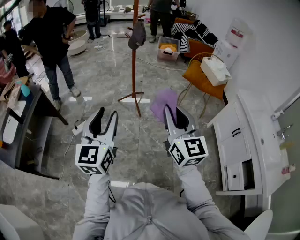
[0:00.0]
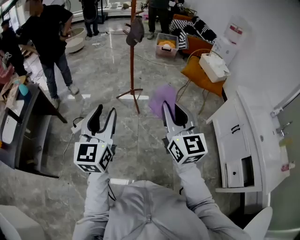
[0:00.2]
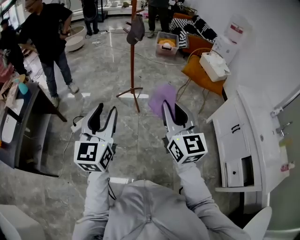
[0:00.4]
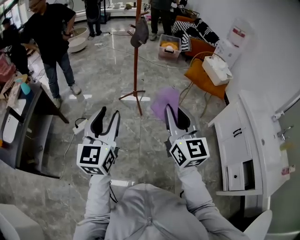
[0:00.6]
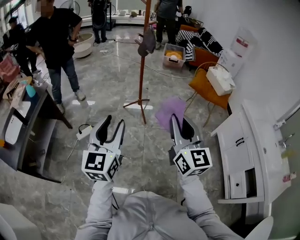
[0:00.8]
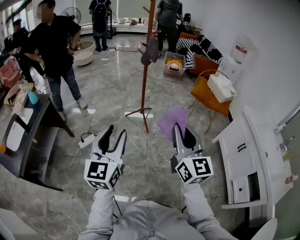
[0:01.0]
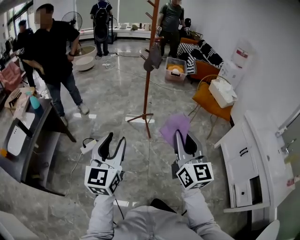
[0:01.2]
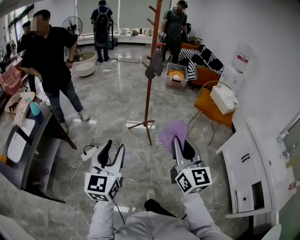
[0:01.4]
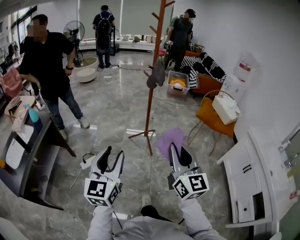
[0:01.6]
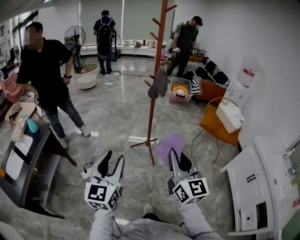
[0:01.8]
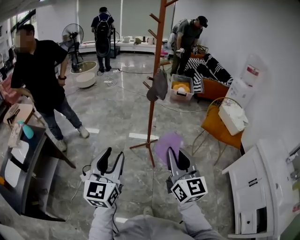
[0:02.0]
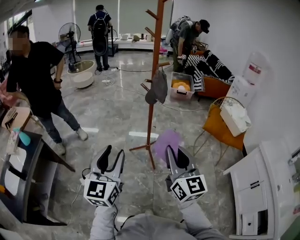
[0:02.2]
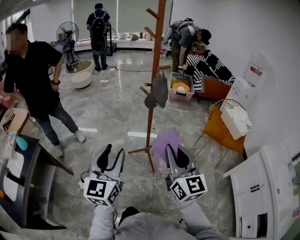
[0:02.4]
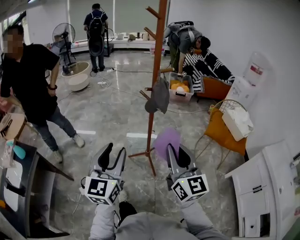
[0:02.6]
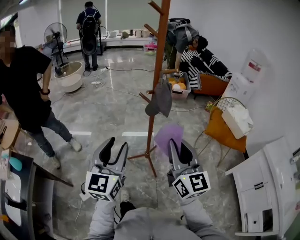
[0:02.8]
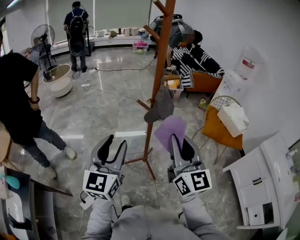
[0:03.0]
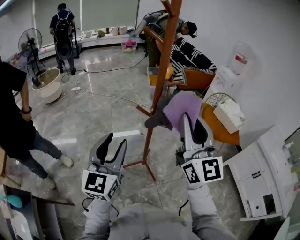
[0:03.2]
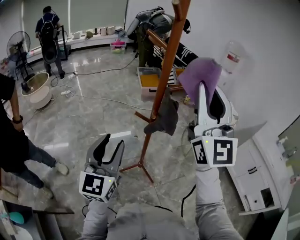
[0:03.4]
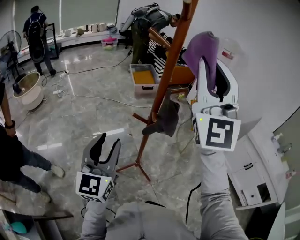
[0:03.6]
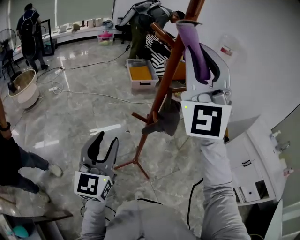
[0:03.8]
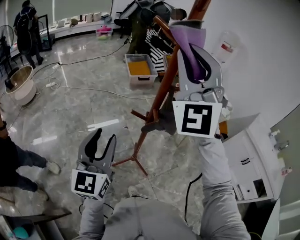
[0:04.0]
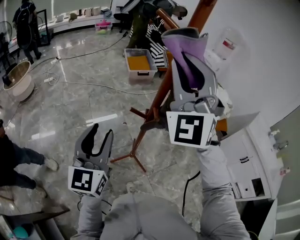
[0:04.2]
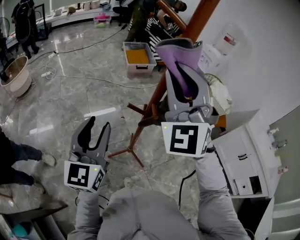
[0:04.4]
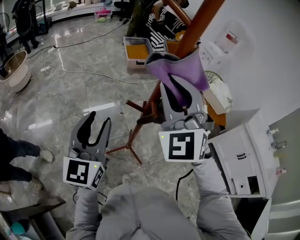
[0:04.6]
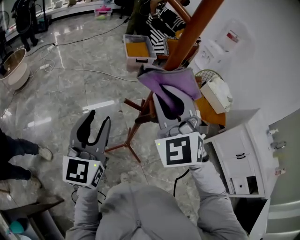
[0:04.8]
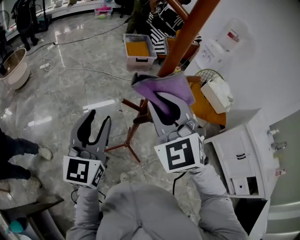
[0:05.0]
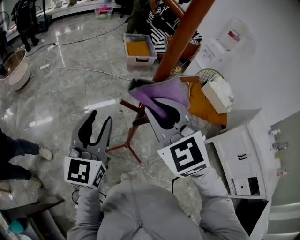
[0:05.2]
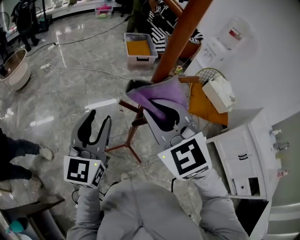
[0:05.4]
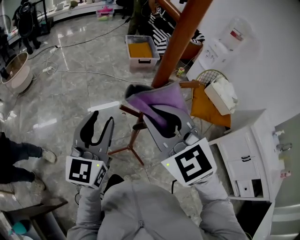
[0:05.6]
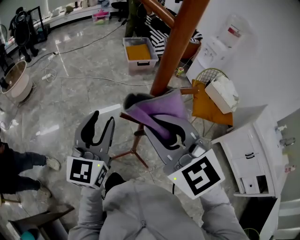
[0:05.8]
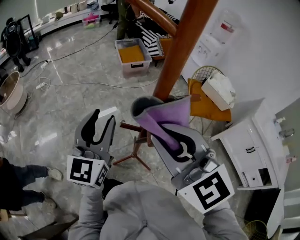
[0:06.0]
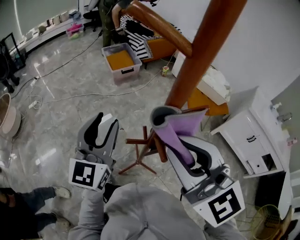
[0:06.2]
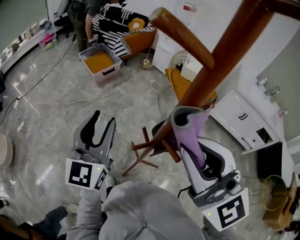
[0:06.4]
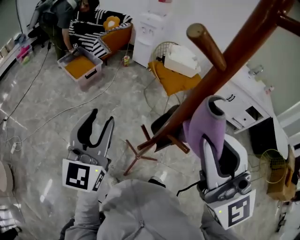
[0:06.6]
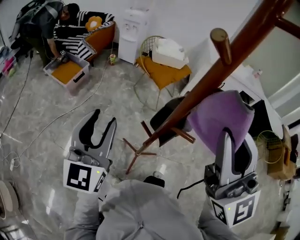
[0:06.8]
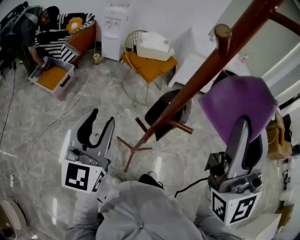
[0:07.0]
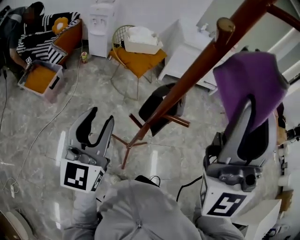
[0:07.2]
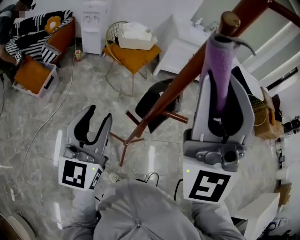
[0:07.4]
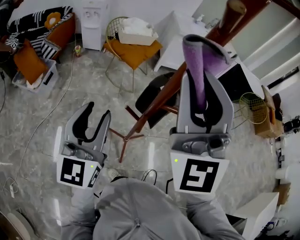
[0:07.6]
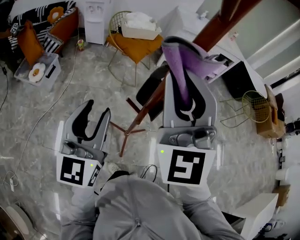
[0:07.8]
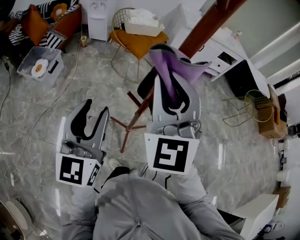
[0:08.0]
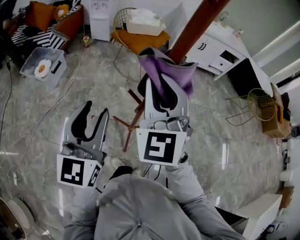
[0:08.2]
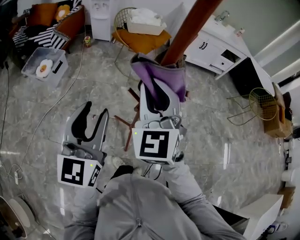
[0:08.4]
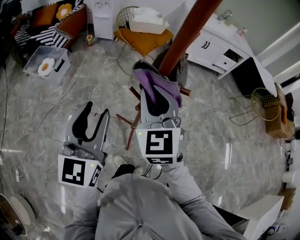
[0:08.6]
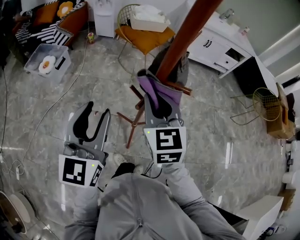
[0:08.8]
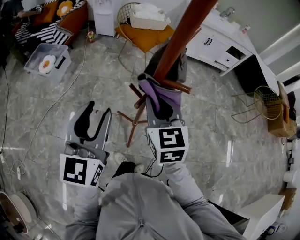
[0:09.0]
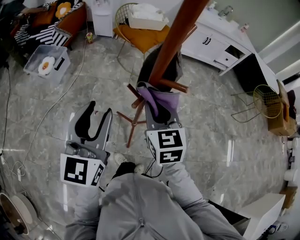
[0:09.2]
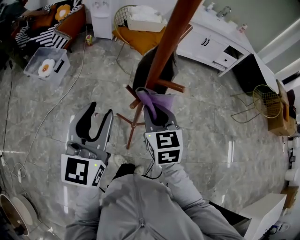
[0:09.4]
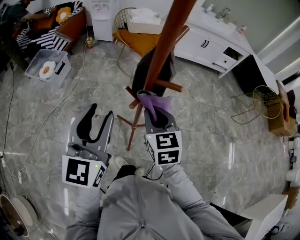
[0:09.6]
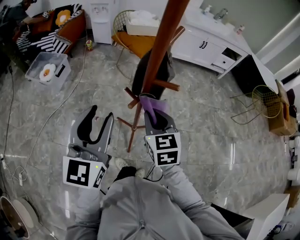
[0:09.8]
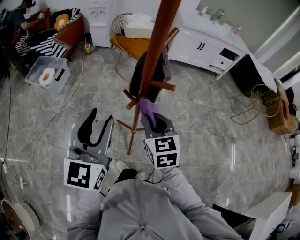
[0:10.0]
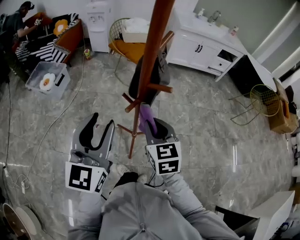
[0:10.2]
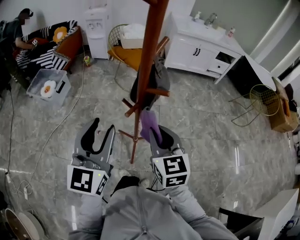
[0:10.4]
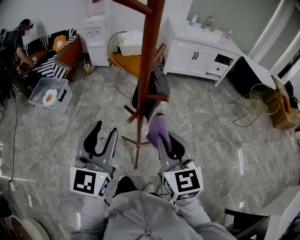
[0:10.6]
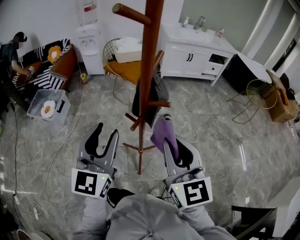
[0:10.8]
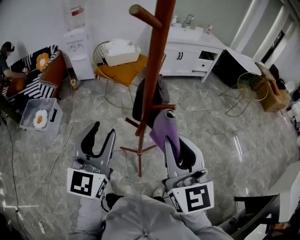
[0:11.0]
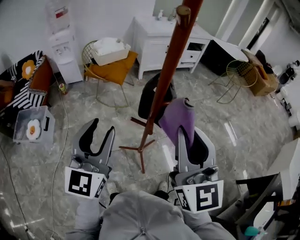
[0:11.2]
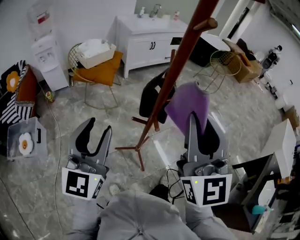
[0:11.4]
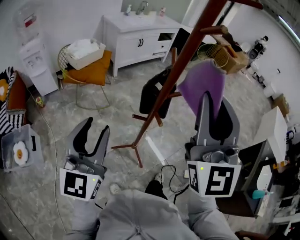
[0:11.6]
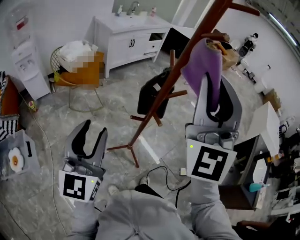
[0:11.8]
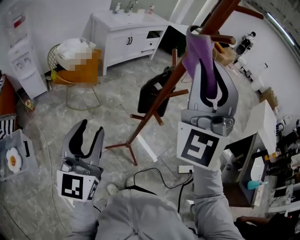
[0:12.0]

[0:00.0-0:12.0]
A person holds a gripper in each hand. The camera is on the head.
0:00.0 to 0:01.6: The grippers both shift to the left and forward by approximately 15 cm.
0:01.6 to 0:03.0: The two grippers travel together, forward, roughly 40 cm.
0:03.0 to 0:04.4: The right gripper heads forward, to the left and upward, covering roughly 30 cm, and rolls counterclockwise, seen from behind, by about 60 degrees; the left gripper travels forward and to the left by roughly 20 cm.
0:04.4 to 0:06.0: The right gripper moves downward, roughly 10 cm, and changes its angle by roughly 50 degrees, while the left gripper moves forward and to the right, some 10 cm.
0:06.0 to 0:07.6: The left gripper shifts by about 10 cm, and rotates roughly 60 degrees. Meanwhile the right gripper heads upward, covering approximately 10 cm, and changes its angle by roughly 90 degrees.
0:07.6 to 0:09.0: The left gripper shifts approximately 5 cm backward; the right gripper goes roughly 25 cm downward, and angles its fingers downward, by approximately 40 degrees.
0:09.0 to 0:10.4: The left gripper shifts by about 5 cm; the right gripper is displaced backward by some 10 cm.
0:10.4 to 0:12.0: The right gripper heads upward, covering about 30 cm, and tips its fingers upward by approximately 50 degrees. Meanwhile the left gripper changes place by approximately 25 cm, and turns by some 40 degrees.

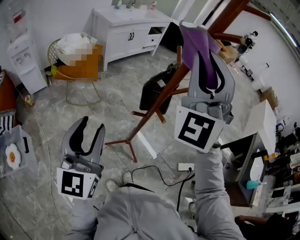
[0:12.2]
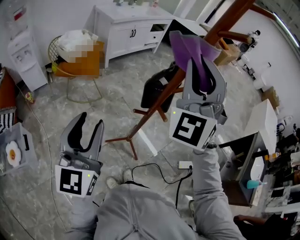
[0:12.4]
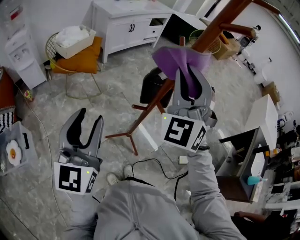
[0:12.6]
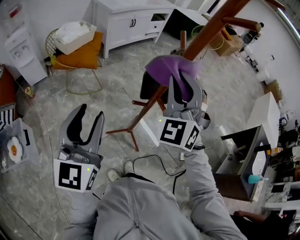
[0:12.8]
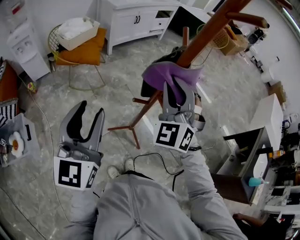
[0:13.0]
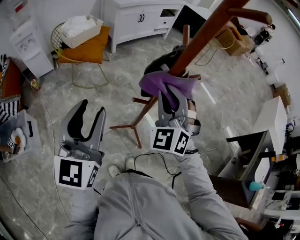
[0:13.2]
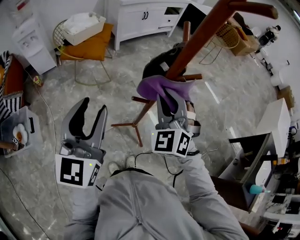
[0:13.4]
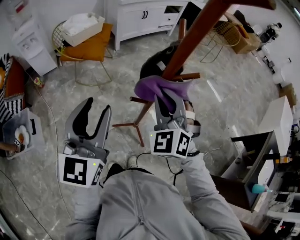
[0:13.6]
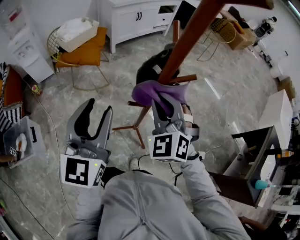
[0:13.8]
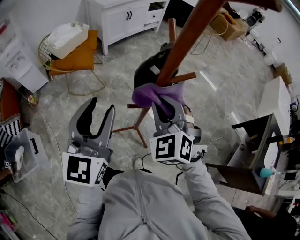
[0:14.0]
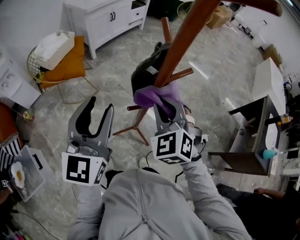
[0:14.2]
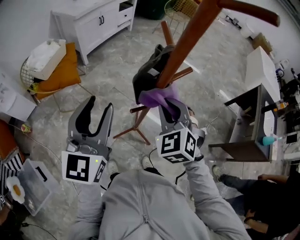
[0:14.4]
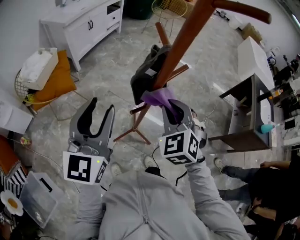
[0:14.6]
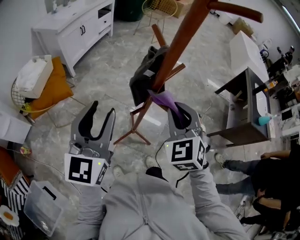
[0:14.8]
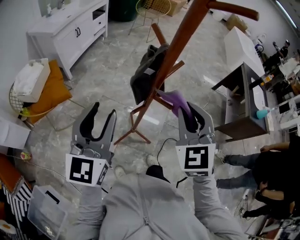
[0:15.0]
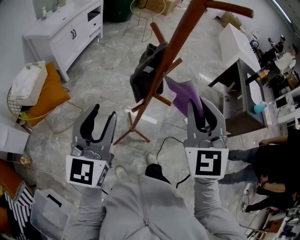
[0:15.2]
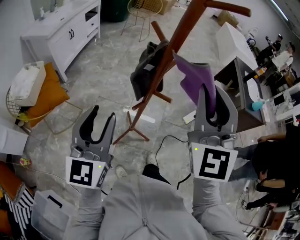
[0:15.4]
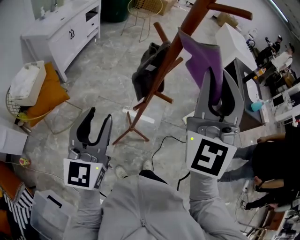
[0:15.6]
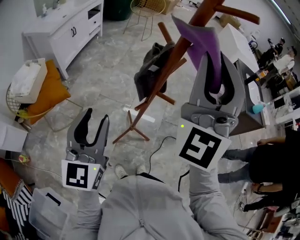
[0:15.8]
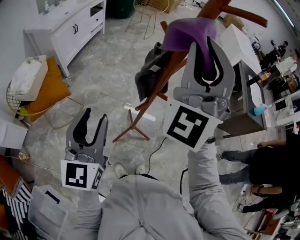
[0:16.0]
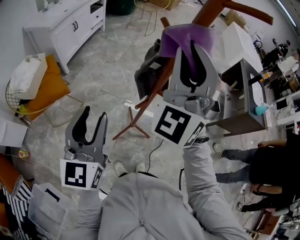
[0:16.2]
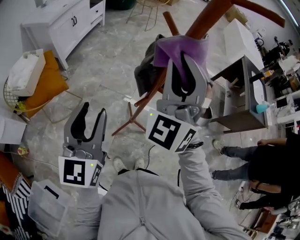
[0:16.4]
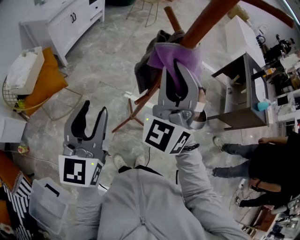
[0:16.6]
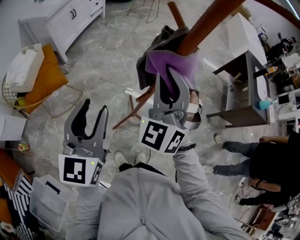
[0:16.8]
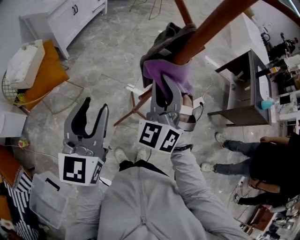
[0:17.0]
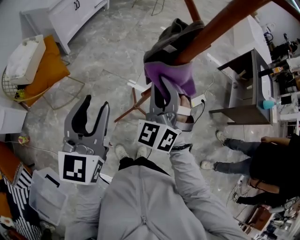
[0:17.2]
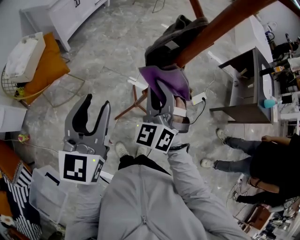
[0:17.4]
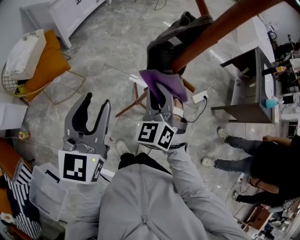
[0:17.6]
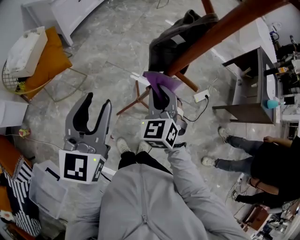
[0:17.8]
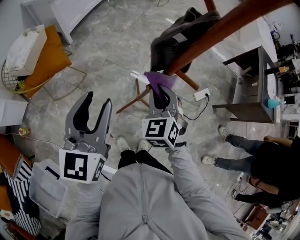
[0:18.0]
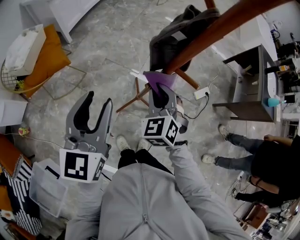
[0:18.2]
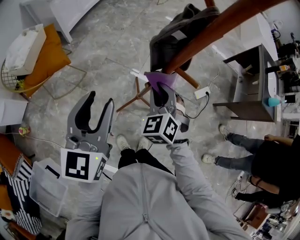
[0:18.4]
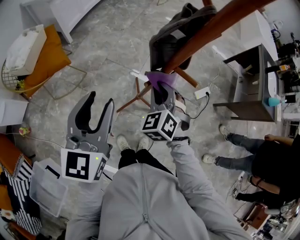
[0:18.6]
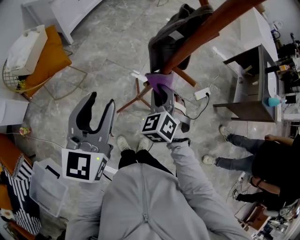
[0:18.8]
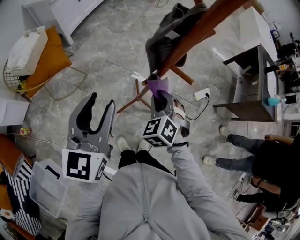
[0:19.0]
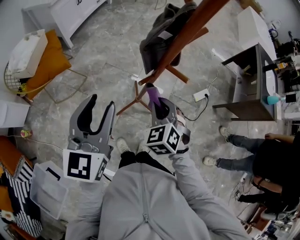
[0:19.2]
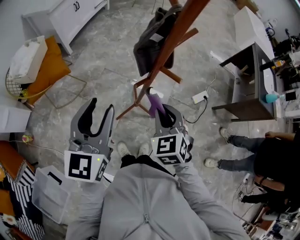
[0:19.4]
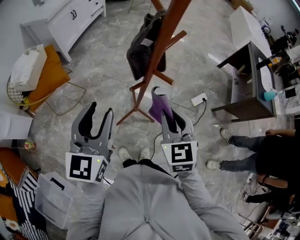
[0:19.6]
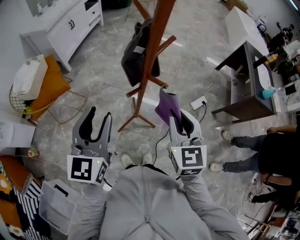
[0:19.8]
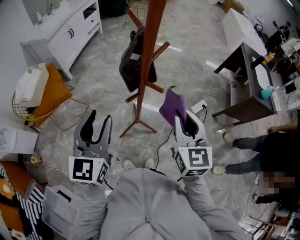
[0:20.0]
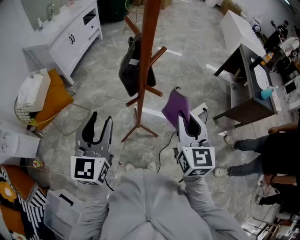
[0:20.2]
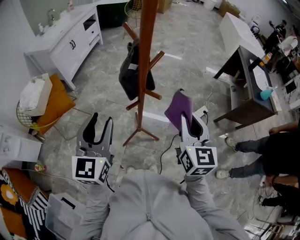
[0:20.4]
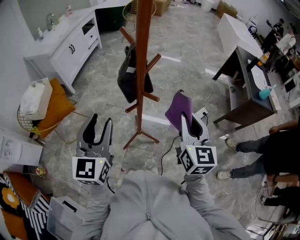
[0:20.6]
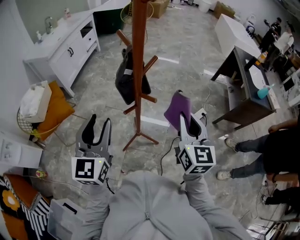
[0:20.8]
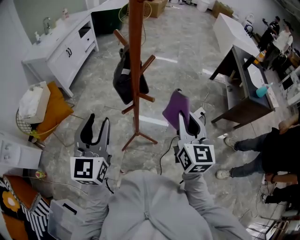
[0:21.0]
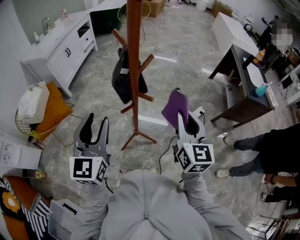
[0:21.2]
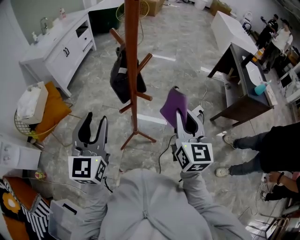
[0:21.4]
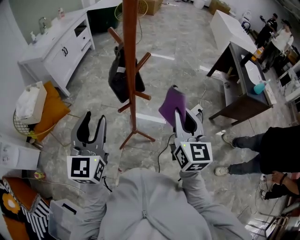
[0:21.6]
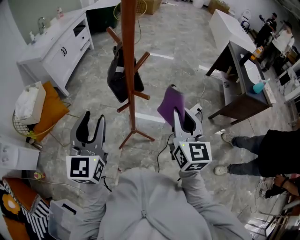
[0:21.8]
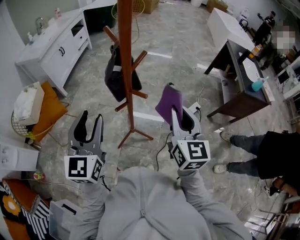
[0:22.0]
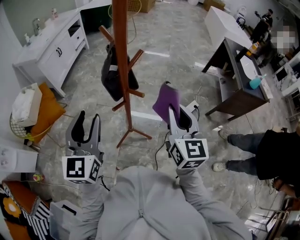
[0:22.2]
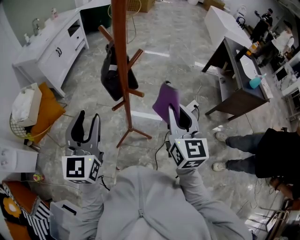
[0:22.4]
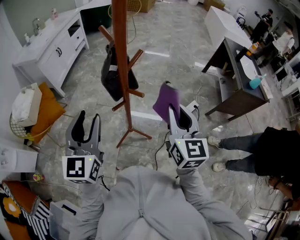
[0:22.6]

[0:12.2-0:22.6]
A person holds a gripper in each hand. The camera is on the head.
0:12.2 to 0:13.6: The right gripper shifts roughly 30 cm downward, and tips its fingers downward by roughly 40 degrees; the left gripper travels to the right by some 5 cm.
0:13.6 to 0:15.2: The left gripper ends up roughly 10 cm from where it was, and rotates about 40 degrees. Meanwhile the right gripper shifts some 10 cm upward, and rotates approximately 50 degrees.
0:15.2 to 0:16.6: The right gripper travels to the left and forward by roughly 10 cm, travels upward and back again, roughly 15 cm each way, and swivels roughly 30 degrees.
0:16.6 to 0:18.2: The right gripper moves downward, some 25 cm, and angles its fingers downward, by about 40 degrees, while the left gripper moves downward, roughly 5 cm.
0:18.2 to 0:19.6: The right gripper goes about 15 cm to the right, backward and upward, and swivels roughly 20 degrees; the left gripper travels to the right by about 5 cm.
0:19.6 to 0:21.2: The right gripper travels to the right and upward by approximately 15 cm, and changes its angle by roughly 30 degrees.
0:21.2 to 0:22.6: The two grippers keep their place.

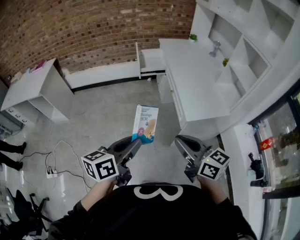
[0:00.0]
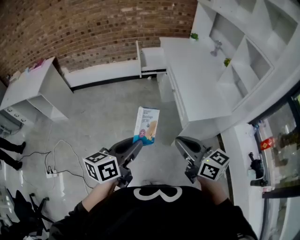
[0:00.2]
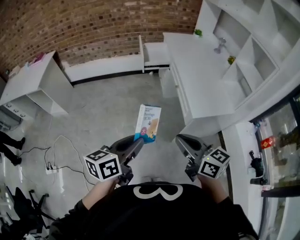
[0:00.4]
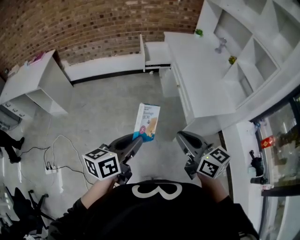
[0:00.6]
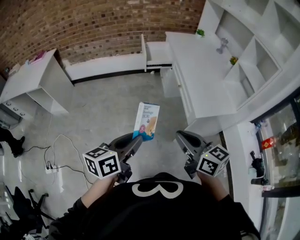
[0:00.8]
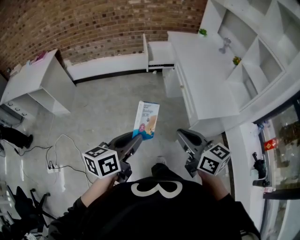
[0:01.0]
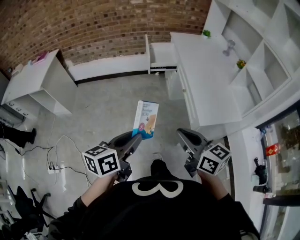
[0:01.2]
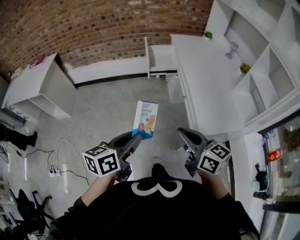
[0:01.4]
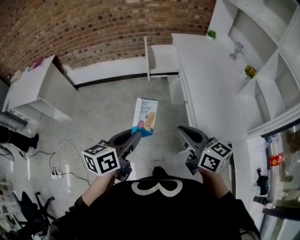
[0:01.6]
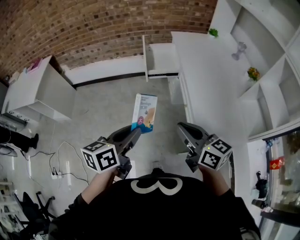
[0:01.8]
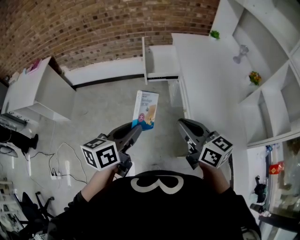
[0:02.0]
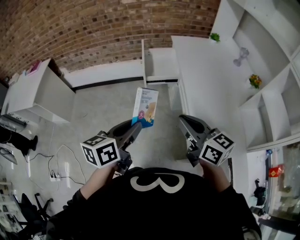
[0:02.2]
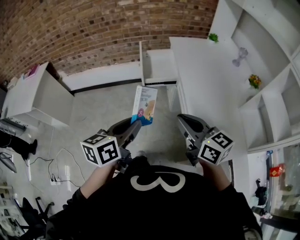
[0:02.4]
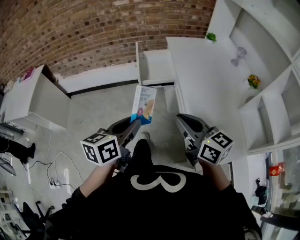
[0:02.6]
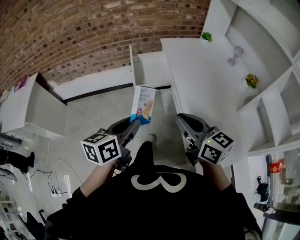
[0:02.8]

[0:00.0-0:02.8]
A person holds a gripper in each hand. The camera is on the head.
0:00.0 to 0:01.4: The grippers both shift forward by roughly 15 cm.
0:01.4 to 0:02.8: Both grippers travel together forward, some 30 cm.
